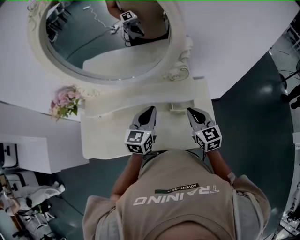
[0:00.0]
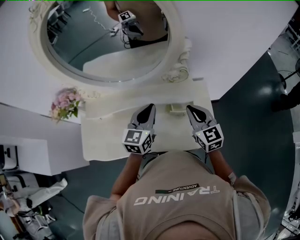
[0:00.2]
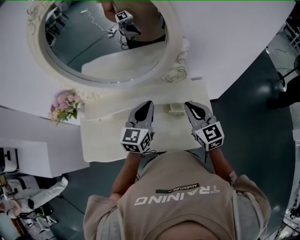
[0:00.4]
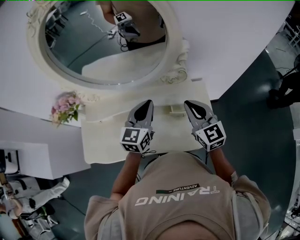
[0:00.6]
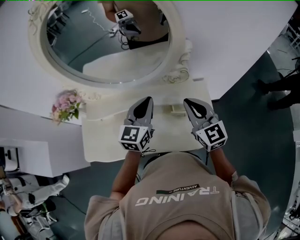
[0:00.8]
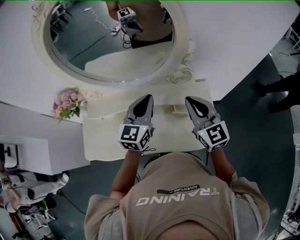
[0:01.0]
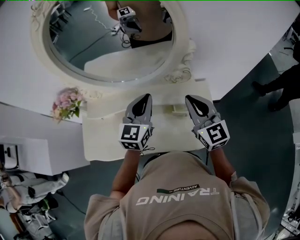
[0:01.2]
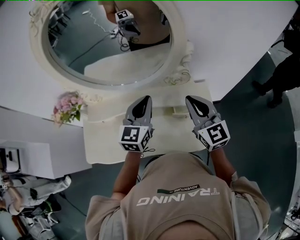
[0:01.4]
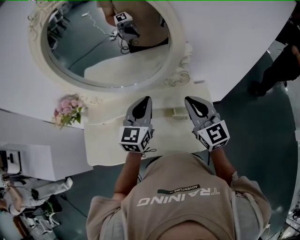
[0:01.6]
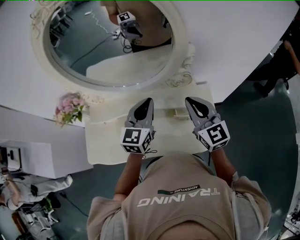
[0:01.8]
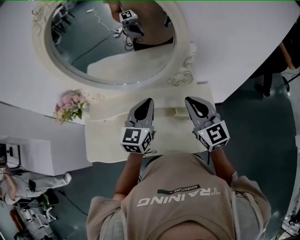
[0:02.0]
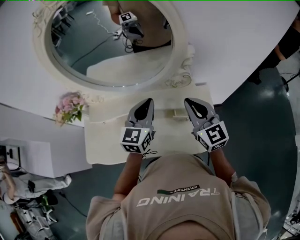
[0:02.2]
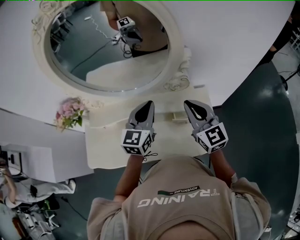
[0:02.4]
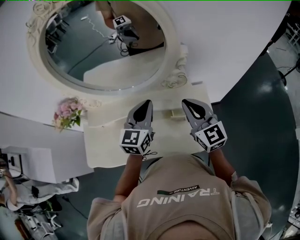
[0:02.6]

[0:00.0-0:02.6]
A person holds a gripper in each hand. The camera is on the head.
0:00.0 to 0:01.2: Both grippers move upward, about 10 cm.
0:01.2 to 0:02.6: The grippers move only a little.

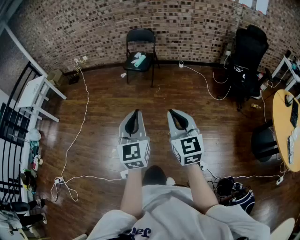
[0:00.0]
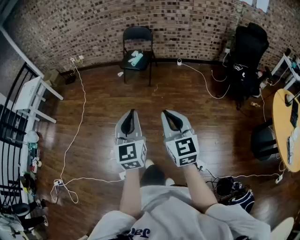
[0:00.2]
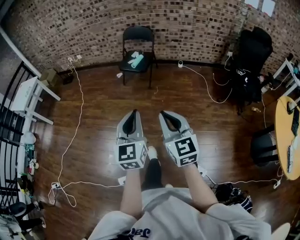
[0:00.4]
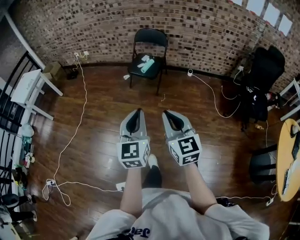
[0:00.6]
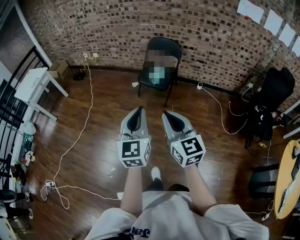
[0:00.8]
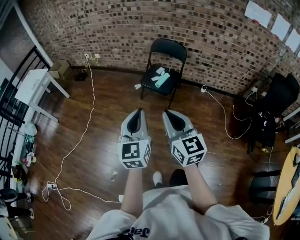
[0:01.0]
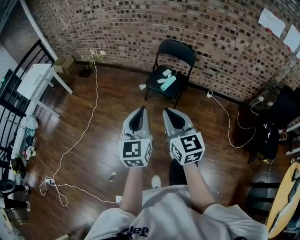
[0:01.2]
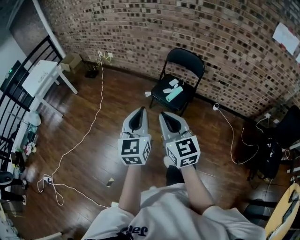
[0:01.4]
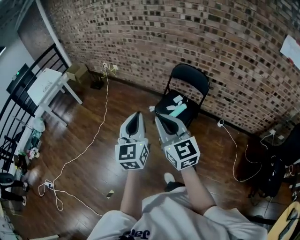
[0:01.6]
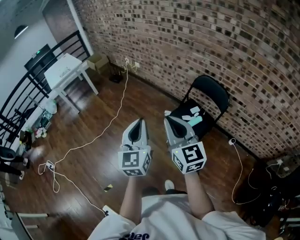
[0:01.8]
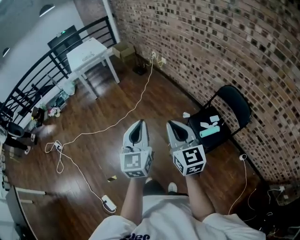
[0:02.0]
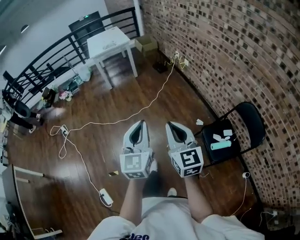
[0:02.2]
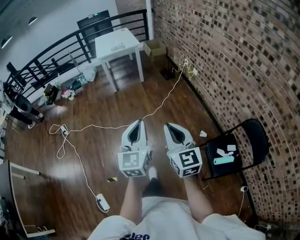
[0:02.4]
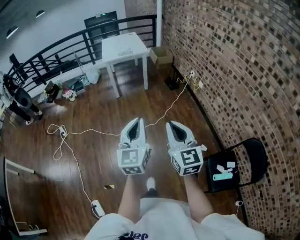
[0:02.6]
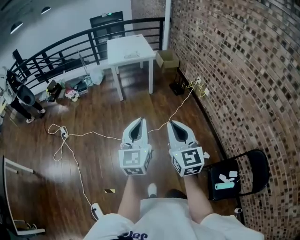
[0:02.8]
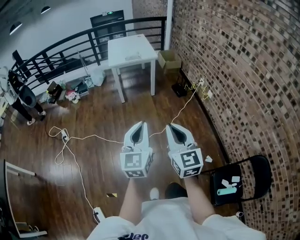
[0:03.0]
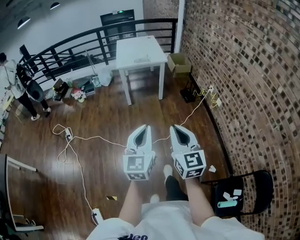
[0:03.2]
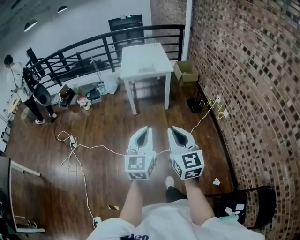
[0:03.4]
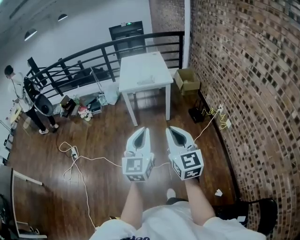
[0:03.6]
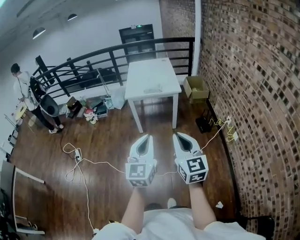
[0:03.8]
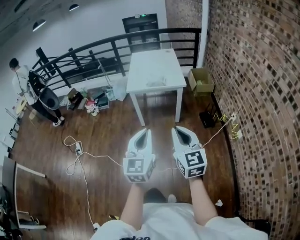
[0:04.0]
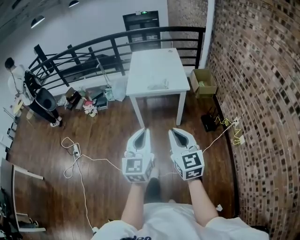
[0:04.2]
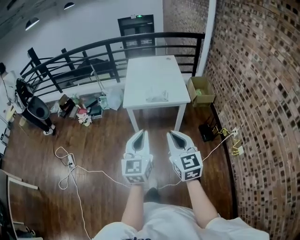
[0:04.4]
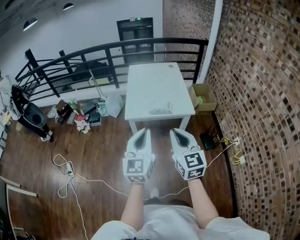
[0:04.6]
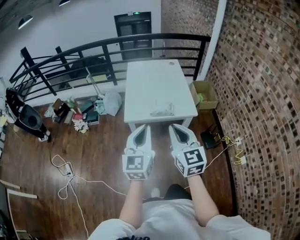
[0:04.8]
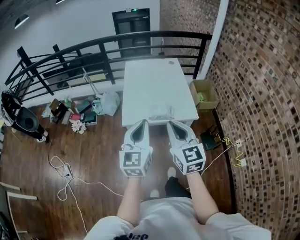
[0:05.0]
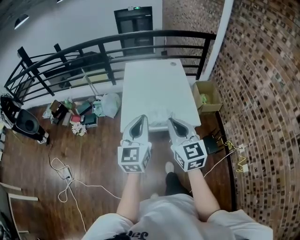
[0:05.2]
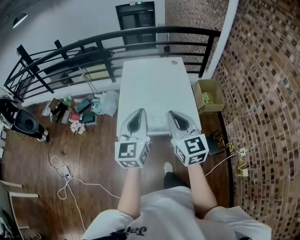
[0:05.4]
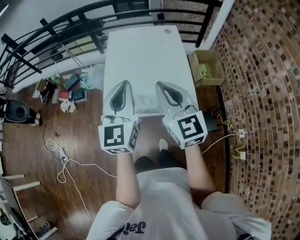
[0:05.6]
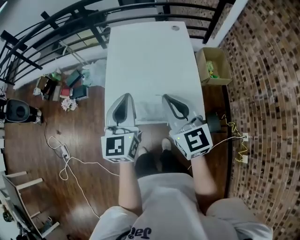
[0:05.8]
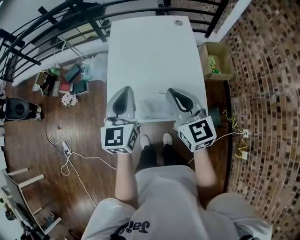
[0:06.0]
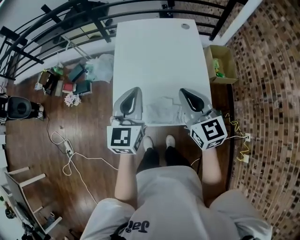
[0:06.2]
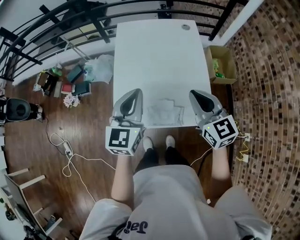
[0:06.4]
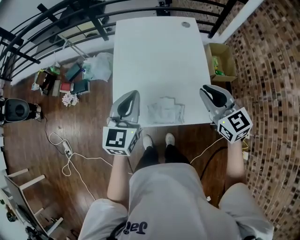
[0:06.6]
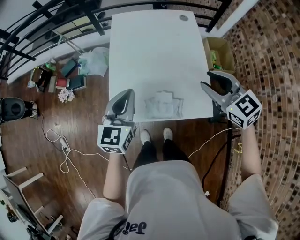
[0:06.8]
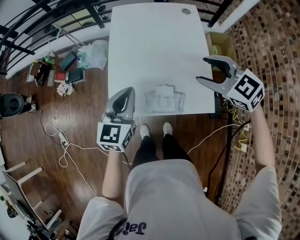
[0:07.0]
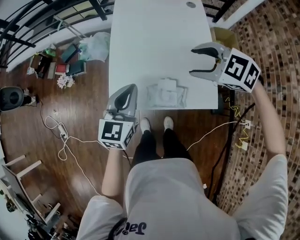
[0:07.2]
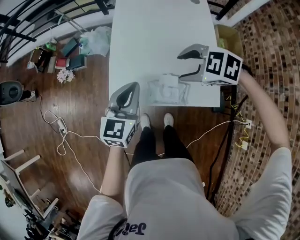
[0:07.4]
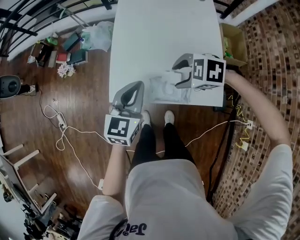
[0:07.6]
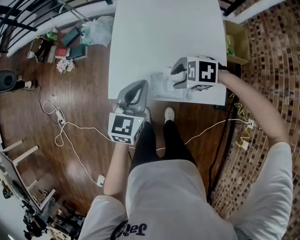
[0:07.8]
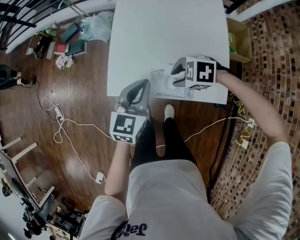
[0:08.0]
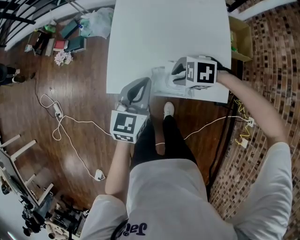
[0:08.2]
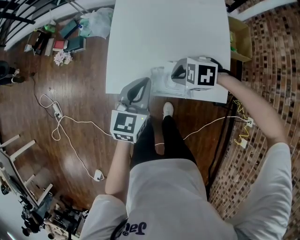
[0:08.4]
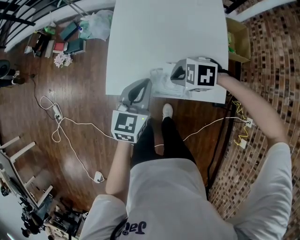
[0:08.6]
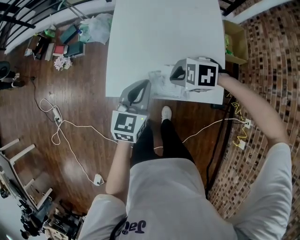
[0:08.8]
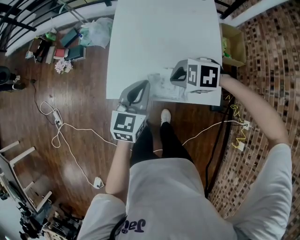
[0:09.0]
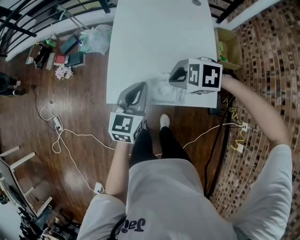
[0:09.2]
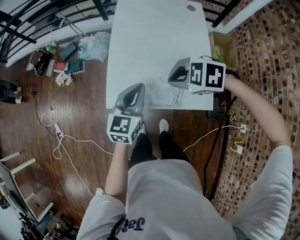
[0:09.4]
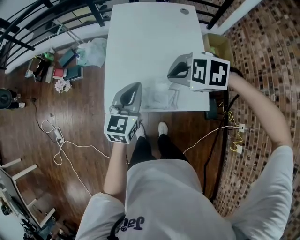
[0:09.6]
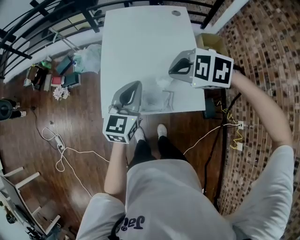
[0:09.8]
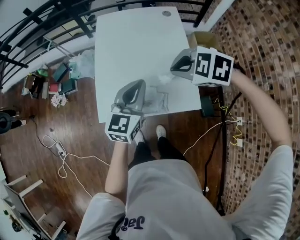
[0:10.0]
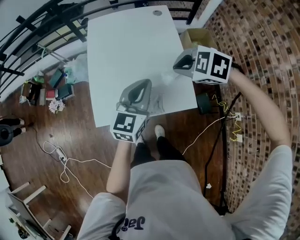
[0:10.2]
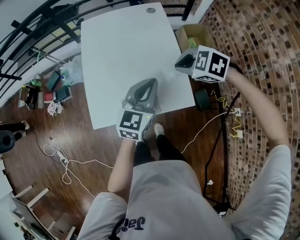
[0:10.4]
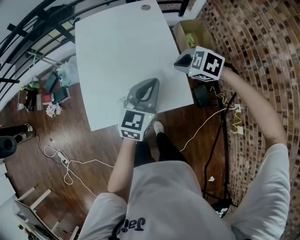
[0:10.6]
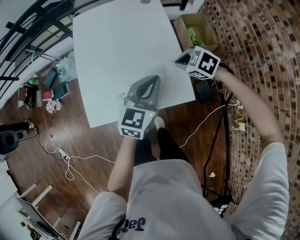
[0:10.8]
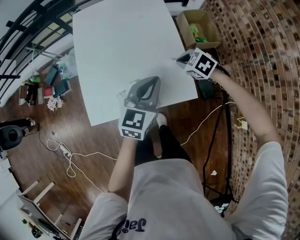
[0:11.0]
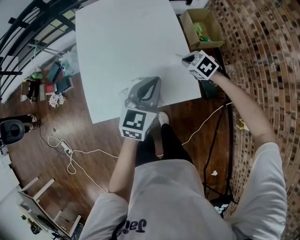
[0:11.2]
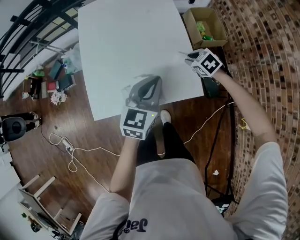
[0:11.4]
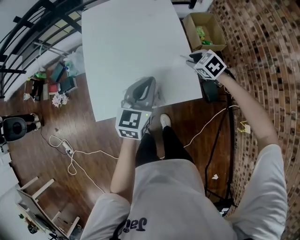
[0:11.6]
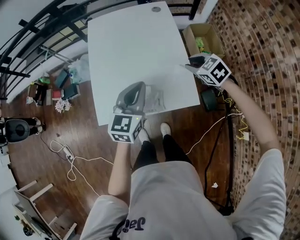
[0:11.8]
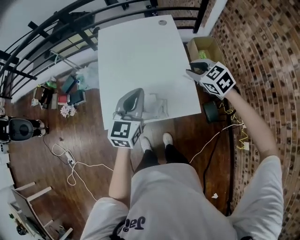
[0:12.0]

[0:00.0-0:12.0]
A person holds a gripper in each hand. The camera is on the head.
0:00.0 to 0:01.6: The two grippers travel together, some 70 cm. The left gripper rotates about 20 degrees; the right gripper changes its angle by roughly 30 degrees.
0:01.6 to 0:03.0: Both grippers are carried about 60 cm. The right gripper changes its angle by roughly 40 degrees; the left gripper turns by some 50 degrees.
0:03.0 to 0:04.4: The two grippers travel together, forward, roughly 60 cm.
0:04.4 to 0:06.0: The pair of grippers is taken forward, roughly 60 cm.
0:06.0 to 0:07.6: Both grippers move downward, roughly 15 cm. The right gripper points its fingers approximately 50 degrees further downward, and opens its fingers.
0:07.6 to 0:09.0: The right gripper goes downward and returns, roughly 10 cm each way, and closes its fingers.
0:09.0 to 0:10.4: The left gripper changes place by about 20 cm, and turns by approximately 20 degrees. Meanwhile the right gripper shifts by roughly 20 cm, and swivels about 30 degrees.
0:10.4 to 0:12.0: The left gripper travels to the left by some 10 cm, while the right gripper goes downward and returns, roughly 20 cm each way, rotates about 30 degrees, and opens up.

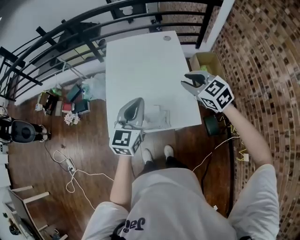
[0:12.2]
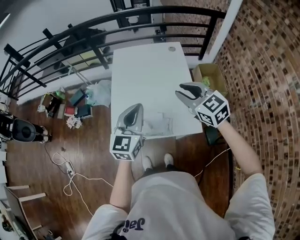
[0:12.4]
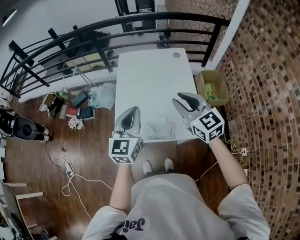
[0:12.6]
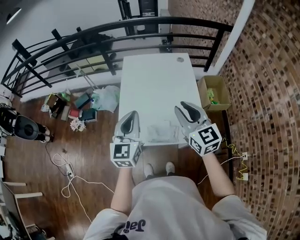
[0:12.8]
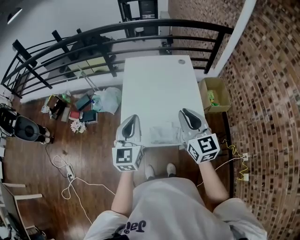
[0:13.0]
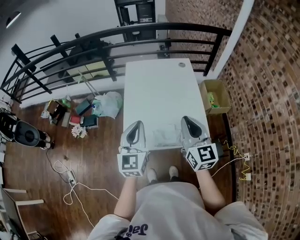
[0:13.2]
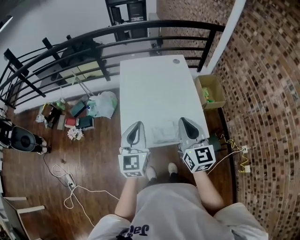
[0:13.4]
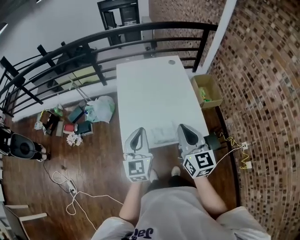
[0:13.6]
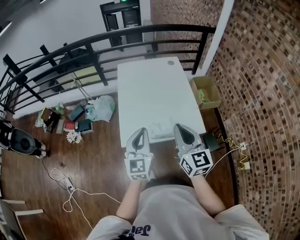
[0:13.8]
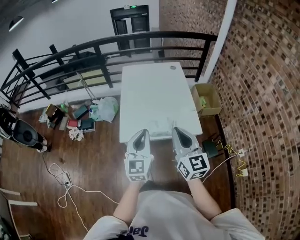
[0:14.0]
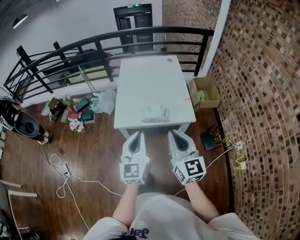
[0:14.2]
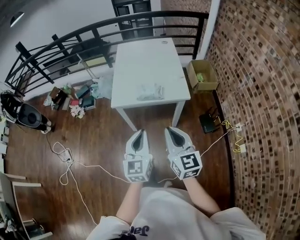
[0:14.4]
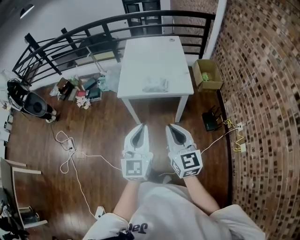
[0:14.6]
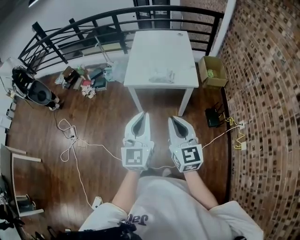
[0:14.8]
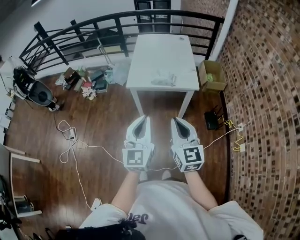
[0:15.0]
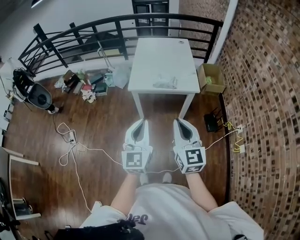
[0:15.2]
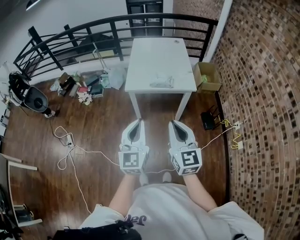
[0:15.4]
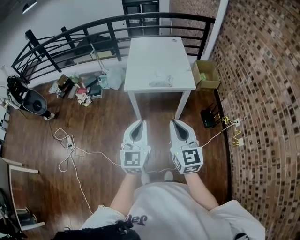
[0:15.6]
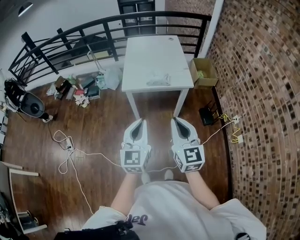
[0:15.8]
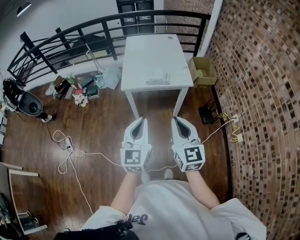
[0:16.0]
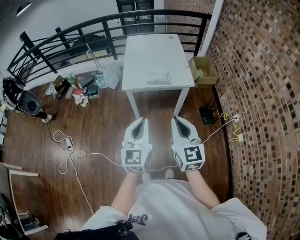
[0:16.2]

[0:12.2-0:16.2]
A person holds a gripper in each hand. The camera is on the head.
0:12.2 to 0:13.6: The two grippers go about 15 cm to the left and backward. The right gripper changes its angle by some 50 degrees, and closes up.
0:13.6 to 0:14.8: Both grippers are carried backward, roughly 40 cm.
0:14.8 to 0:16.2: The left gripper heads to the left, covering about 5 cm.

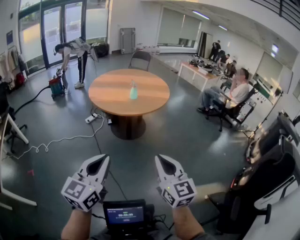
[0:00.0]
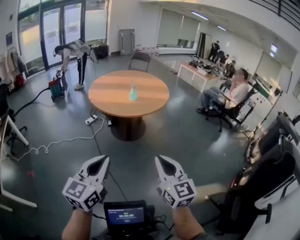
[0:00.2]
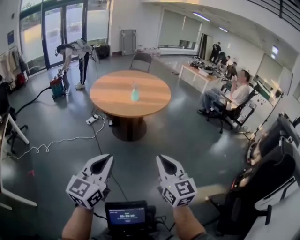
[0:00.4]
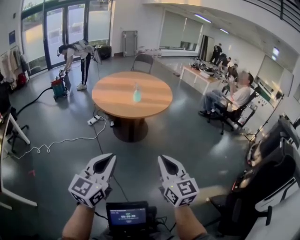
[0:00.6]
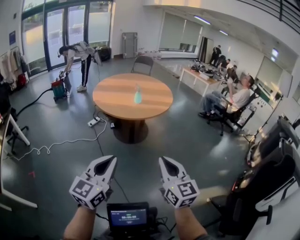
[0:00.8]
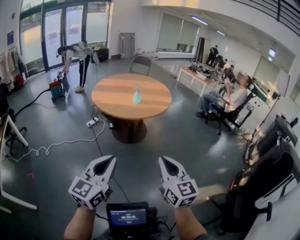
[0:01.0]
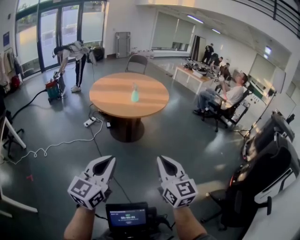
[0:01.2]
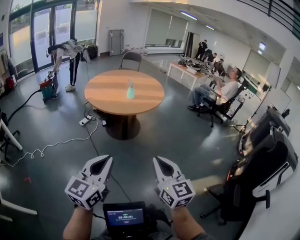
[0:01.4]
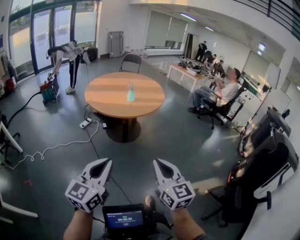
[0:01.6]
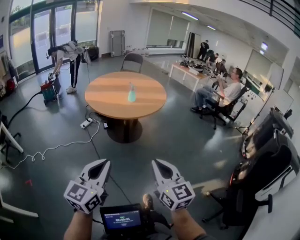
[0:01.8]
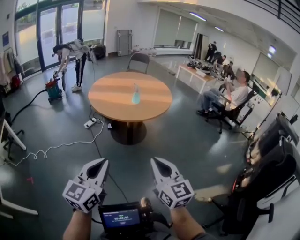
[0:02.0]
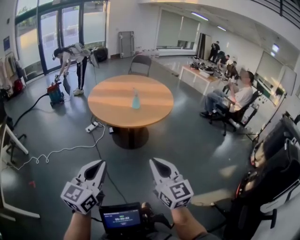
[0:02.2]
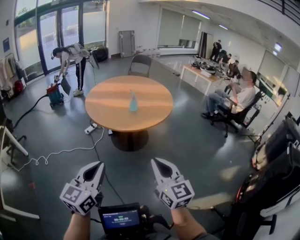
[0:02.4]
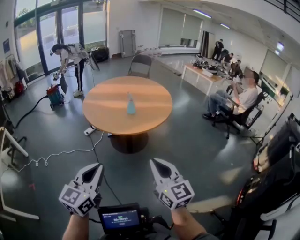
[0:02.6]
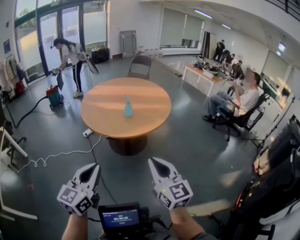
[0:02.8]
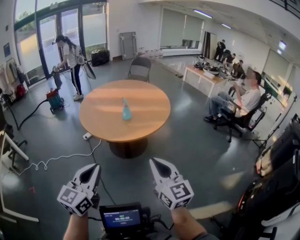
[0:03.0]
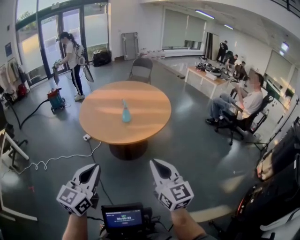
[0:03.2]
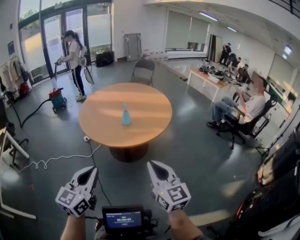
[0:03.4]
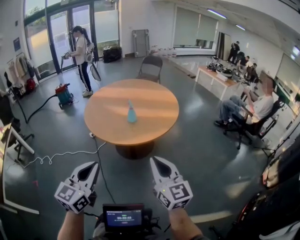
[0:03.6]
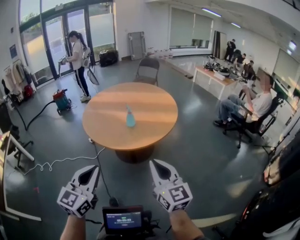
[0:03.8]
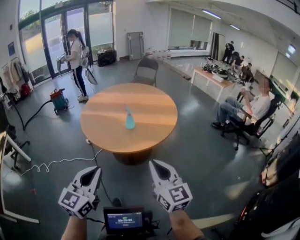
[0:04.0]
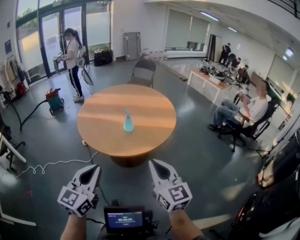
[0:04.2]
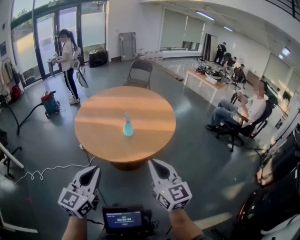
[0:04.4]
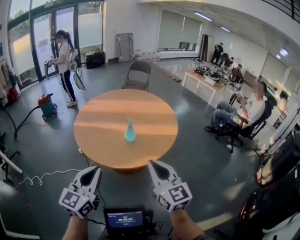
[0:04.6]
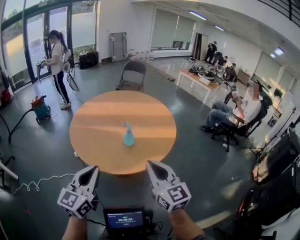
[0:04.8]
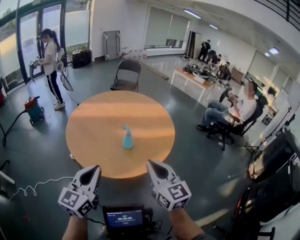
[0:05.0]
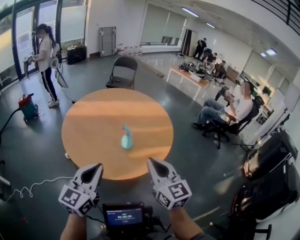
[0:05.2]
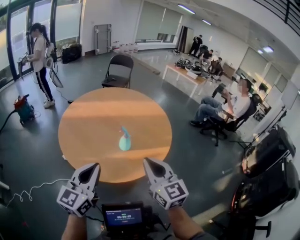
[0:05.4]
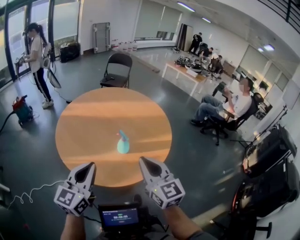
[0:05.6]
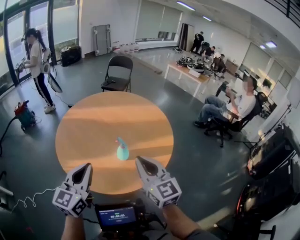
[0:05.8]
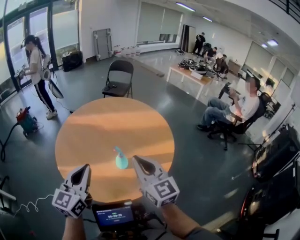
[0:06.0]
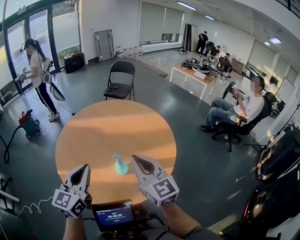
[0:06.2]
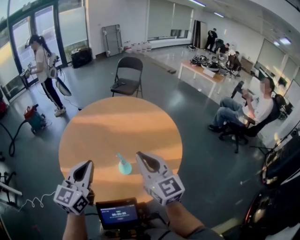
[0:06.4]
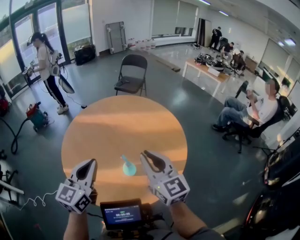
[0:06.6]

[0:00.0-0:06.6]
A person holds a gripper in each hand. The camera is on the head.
0:00.0 to 0:01.6: Both grippers travel together to the left, about 5 cm.
0:01.6 to 0:03.2: Both grippers travel together forward and to the right, about 30 cm.
0:03.2 to 0:05.0: The left gripper moves forward, approximately 25 cm. The right gripper moves forward and to the left, some 25 cm.
0:05.0 to 0:06.6: Both grippers move forward, about 25 cm.
